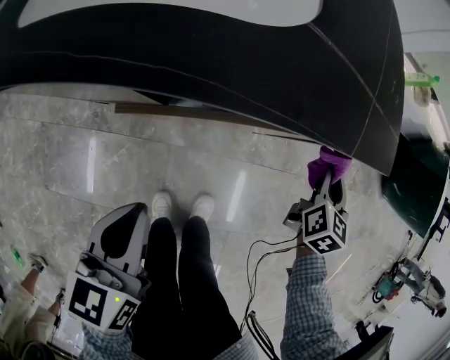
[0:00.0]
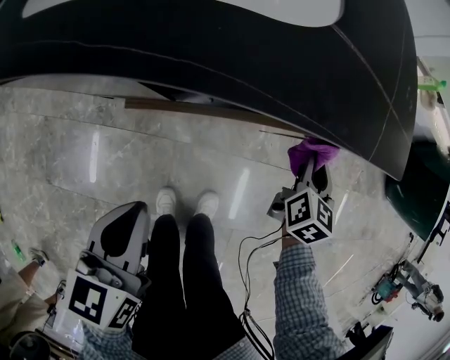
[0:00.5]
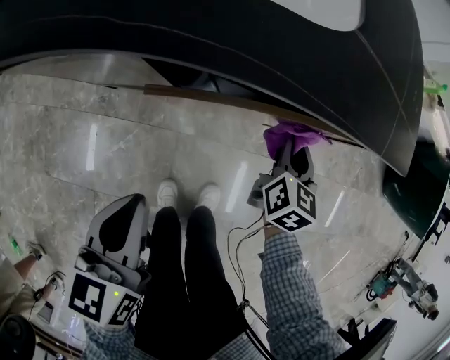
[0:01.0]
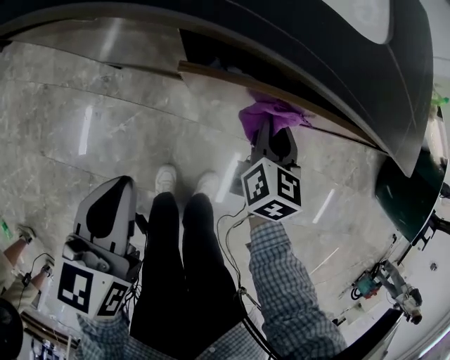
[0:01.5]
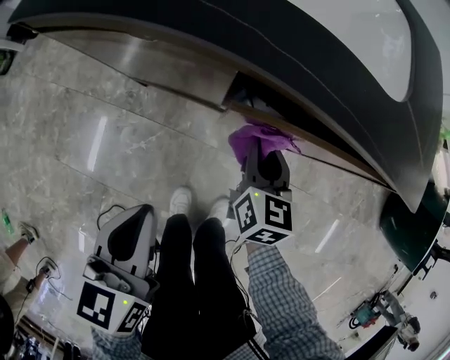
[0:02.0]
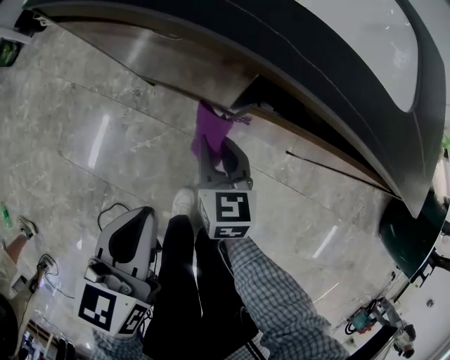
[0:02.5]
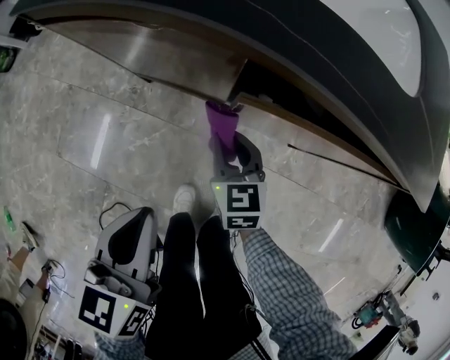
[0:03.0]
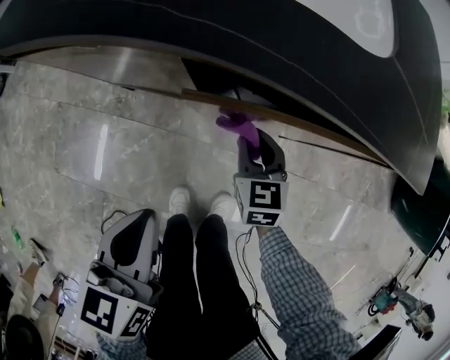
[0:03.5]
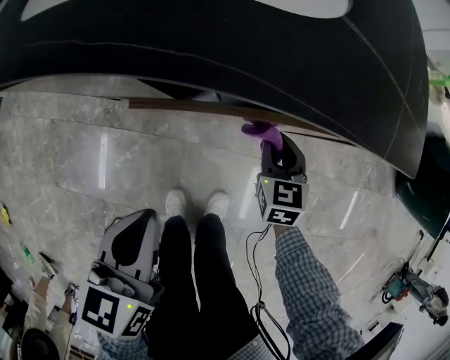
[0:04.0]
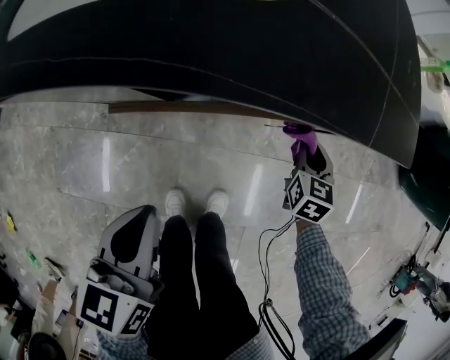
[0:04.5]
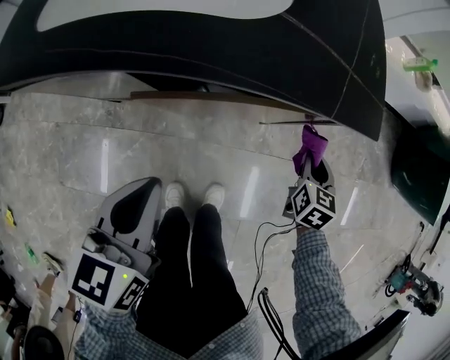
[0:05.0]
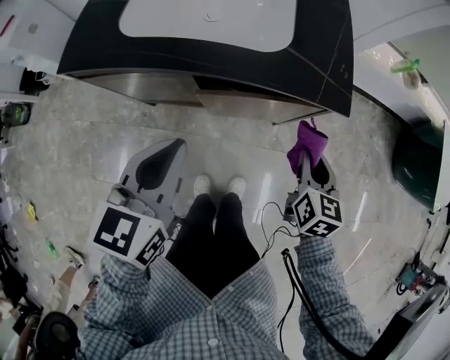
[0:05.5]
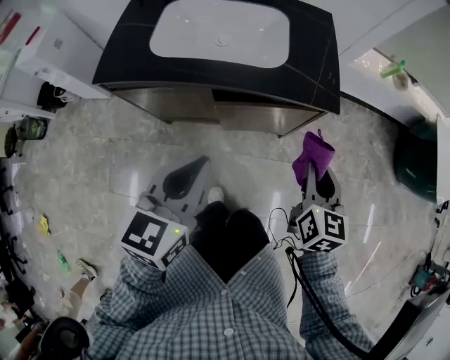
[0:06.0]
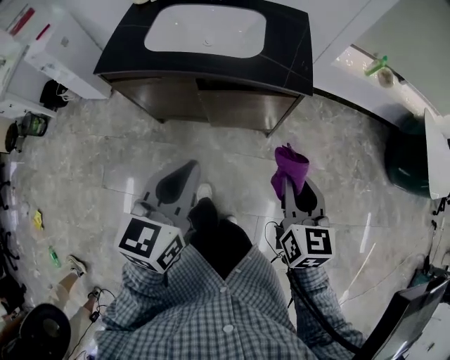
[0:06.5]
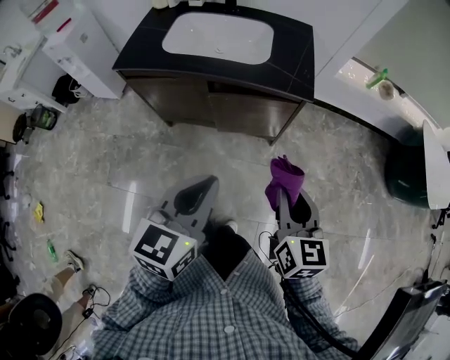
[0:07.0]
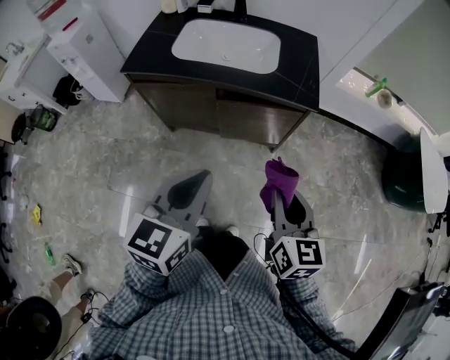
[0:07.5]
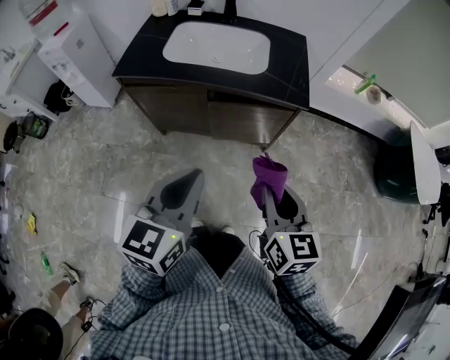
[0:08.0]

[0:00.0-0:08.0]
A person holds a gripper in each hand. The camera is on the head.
0:00.0 to 0:02.0: The left gripper shifts by approximately 15 cm. The right gripper shifts by approximately 35 cm, and rotates about 30 degrees.
0:02.0 to 0:04.0: The two grippers go about 15 cm to the right.
0:04.0 to 0:06.0: The left gripper heads upward, covering about 30 cm, and rotates about 20 degrees. Meanwhile the right gripper travels upward and backward by some 40 cm, and turns by some 20 degrees.
0:06.0 to 0:08.0: Both grippers move backward and upward, roughly 20 cm.

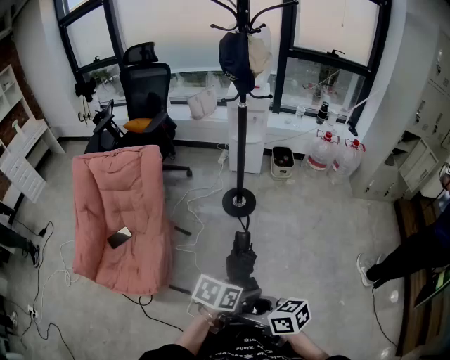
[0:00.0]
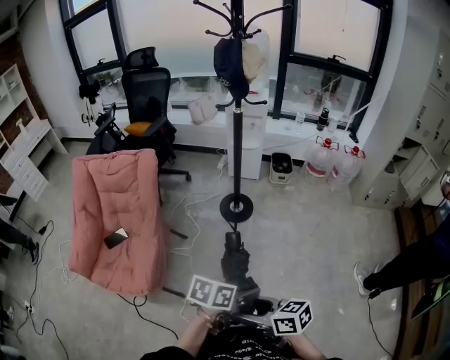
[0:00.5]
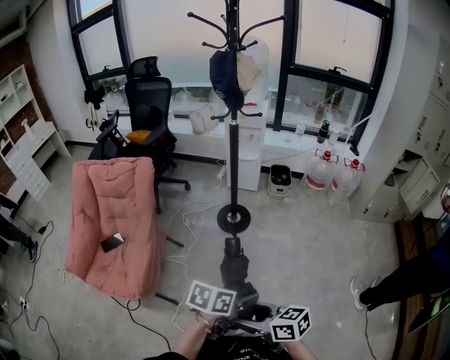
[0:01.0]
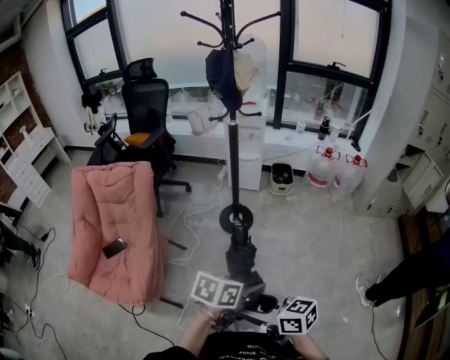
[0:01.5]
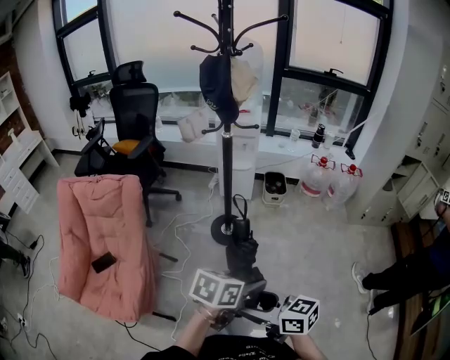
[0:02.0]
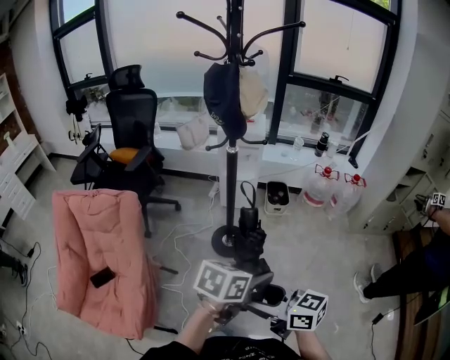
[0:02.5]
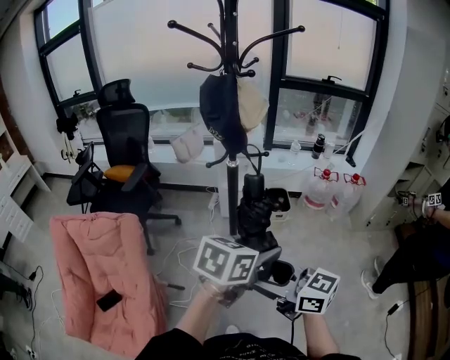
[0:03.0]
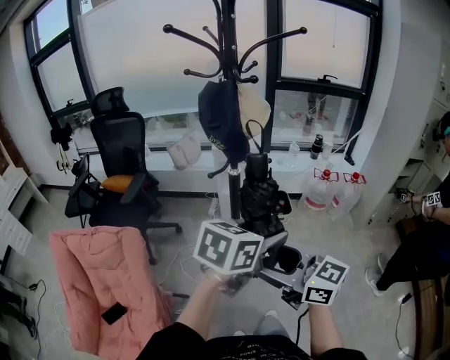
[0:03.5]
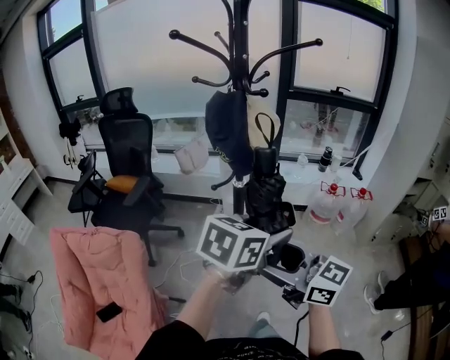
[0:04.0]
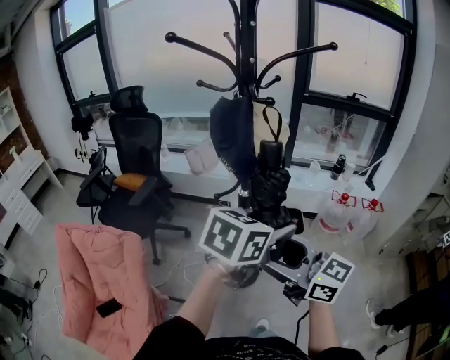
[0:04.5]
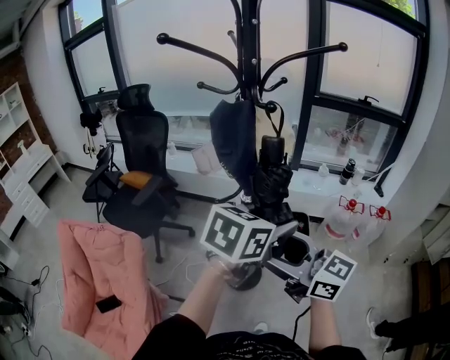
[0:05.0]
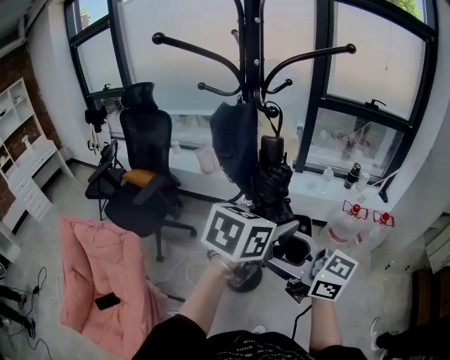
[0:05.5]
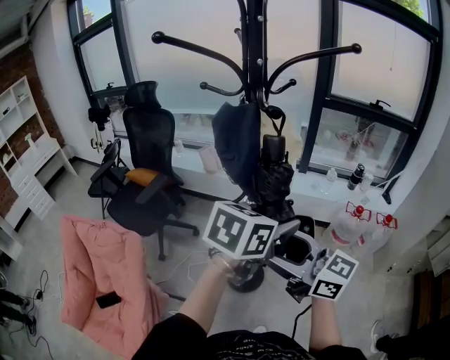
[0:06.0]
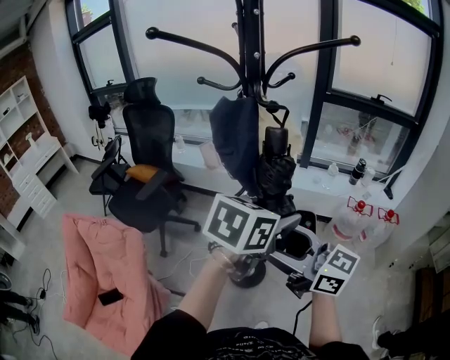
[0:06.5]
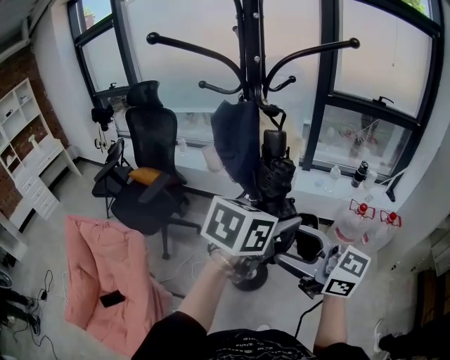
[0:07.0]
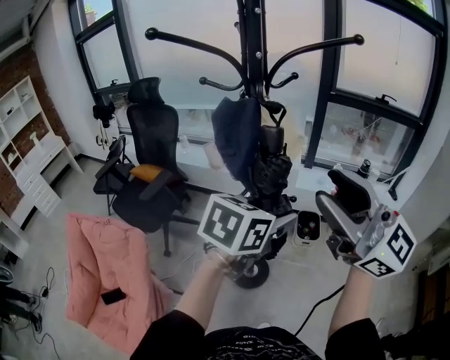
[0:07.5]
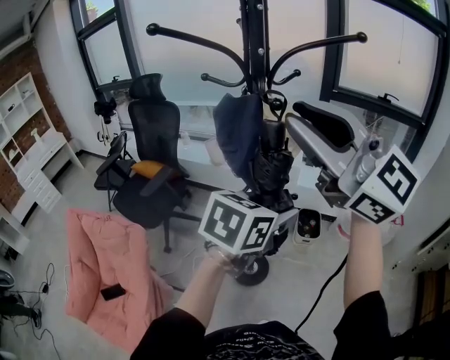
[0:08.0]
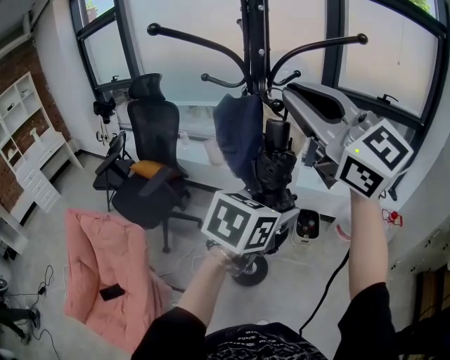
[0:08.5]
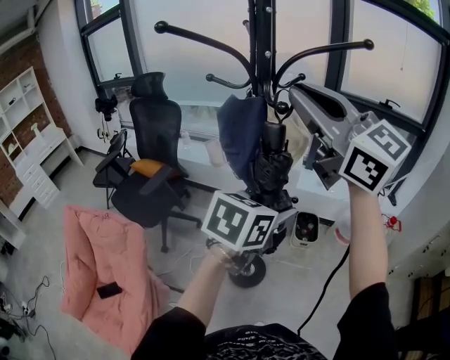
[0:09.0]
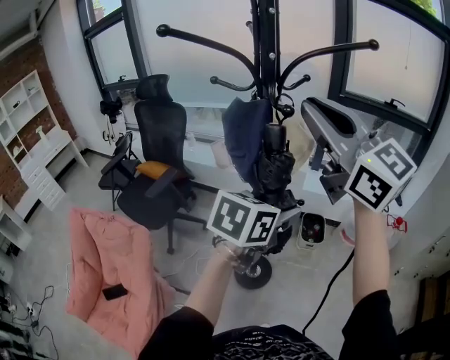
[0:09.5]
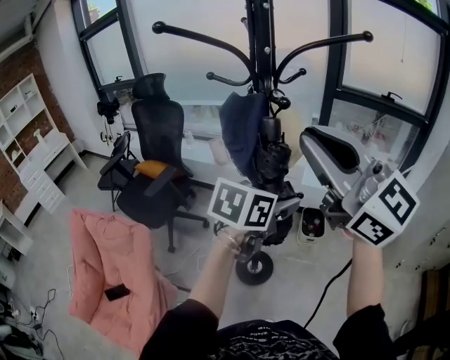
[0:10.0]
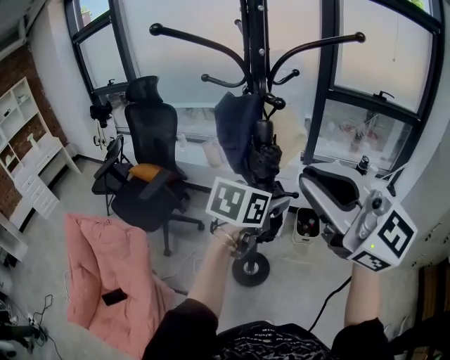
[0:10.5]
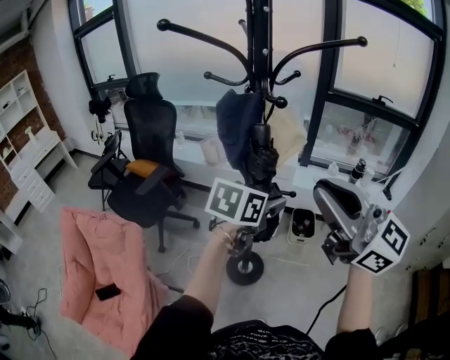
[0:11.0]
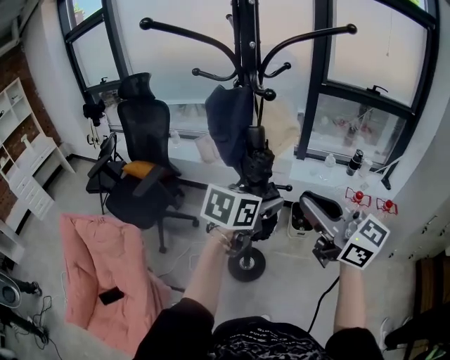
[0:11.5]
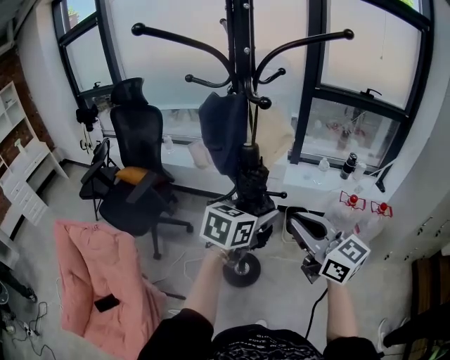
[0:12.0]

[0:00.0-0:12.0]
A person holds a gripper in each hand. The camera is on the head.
0:00.0 to 0:02.0: The right gripper changes place by approximately 20 cm, while the left gripper changes place by about 20 cm.
0:02.0 to 0:04.0: Both grippers travel together forward and upward, some 35 cm. The left gripper swivels about 20 degrees, while the right gripper swivels approximately 30 degrees.
0:04.0 to 0:06.0: Both grippers move forward, approximately 10 cm.
0:06.0 to 0:08.0: The right gripper heads upward, covering some 25 cm, changes its angle by approximately 40 degrees, and closes.
0:10.0 to 0:12.0: The left gripper shifts some 5 cm downward; the right gripper moves downward, roughly 20 cm, and swivels roughly 30 degrees.

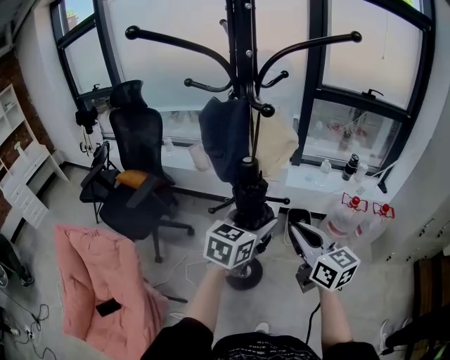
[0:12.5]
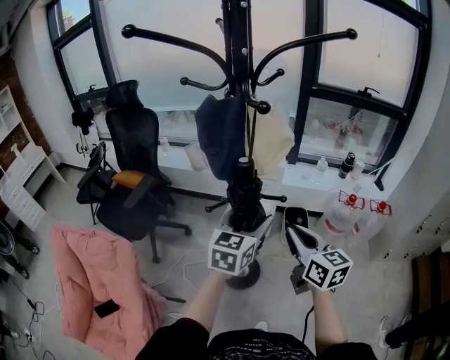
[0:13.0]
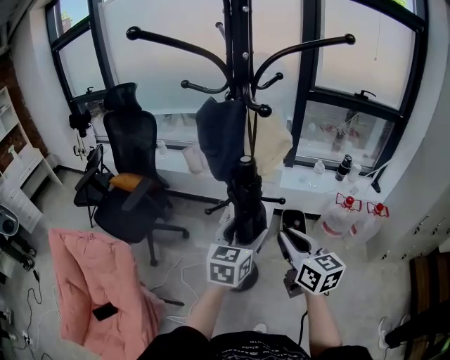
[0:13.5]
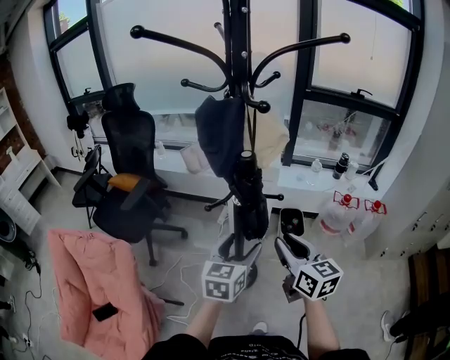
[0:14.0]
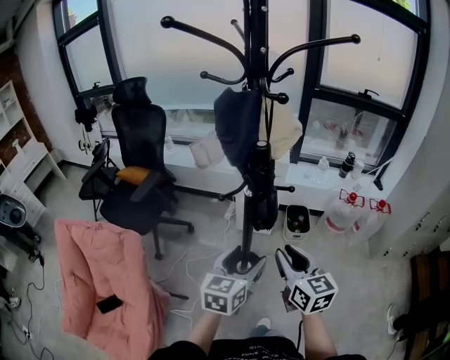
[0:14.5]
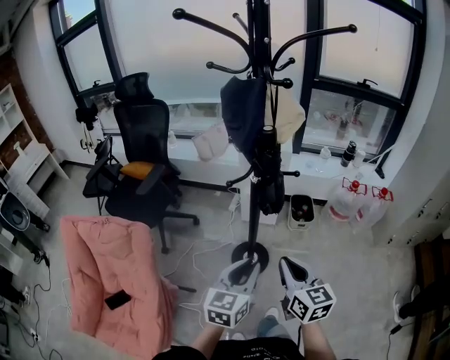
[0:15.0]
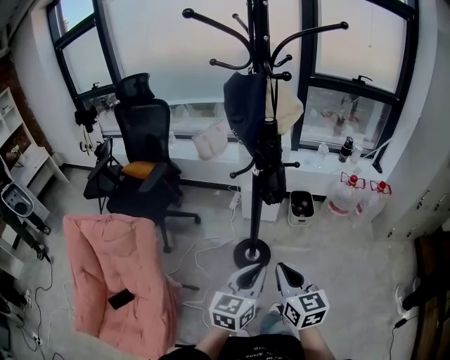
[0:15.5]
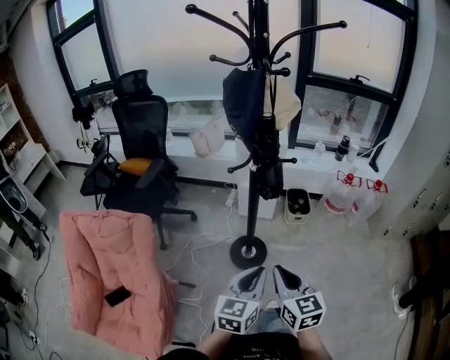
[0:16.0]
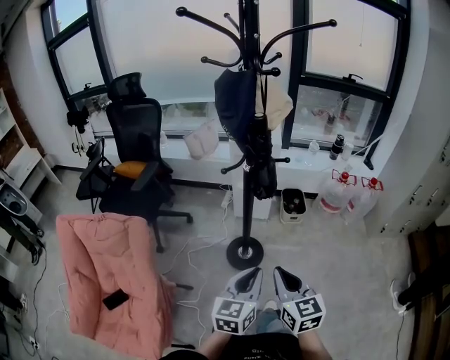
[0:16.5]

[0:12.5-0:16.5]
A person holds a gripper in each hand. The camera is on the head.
0:12.5 to 0:14.5: The right gripper travels backward and downward by roughly 10 cm; the left gripper moves backward, downward and to the left, approximately 15 cm.
0:14.5 to 0:16.5: Both grippers move backward, some 15 cm. The left gripper closes up.

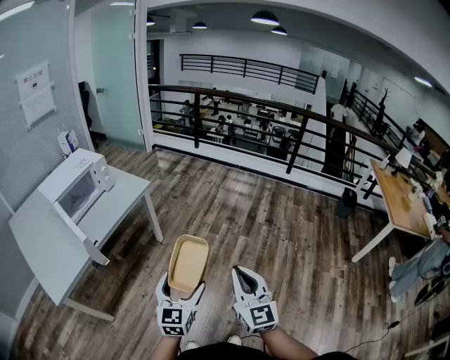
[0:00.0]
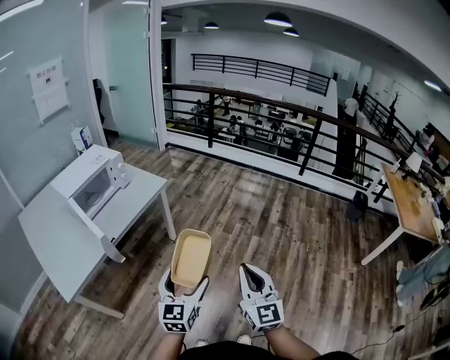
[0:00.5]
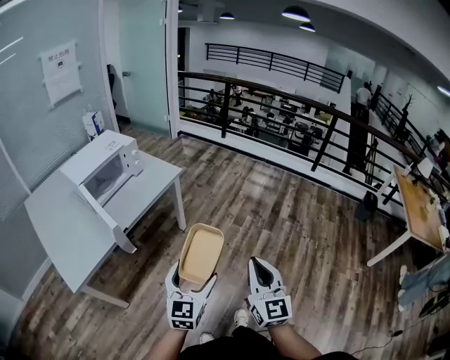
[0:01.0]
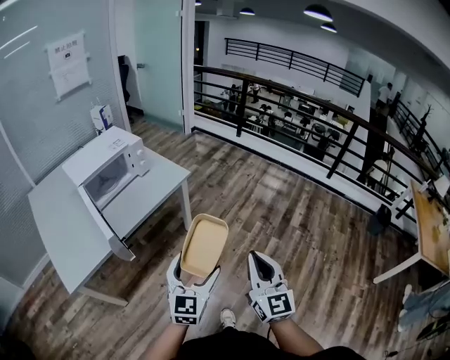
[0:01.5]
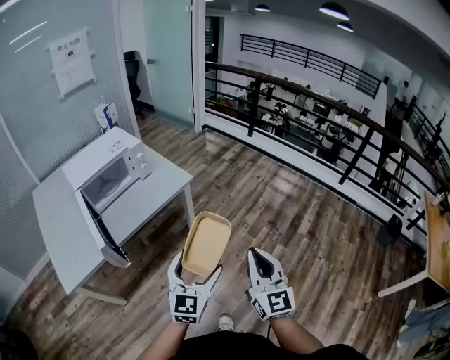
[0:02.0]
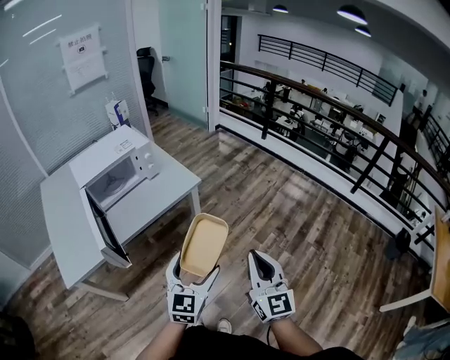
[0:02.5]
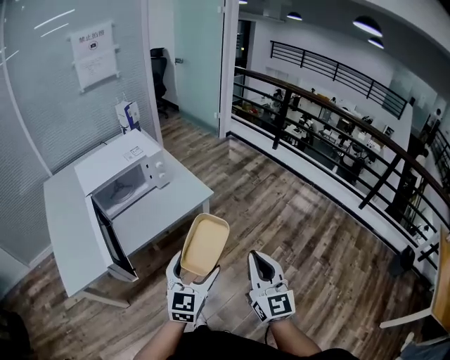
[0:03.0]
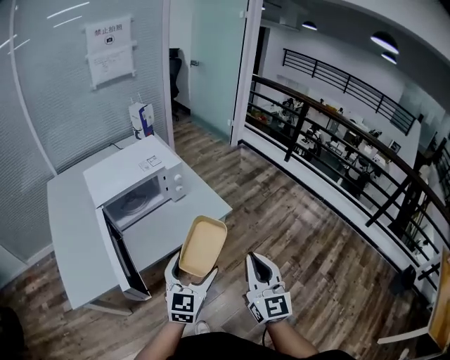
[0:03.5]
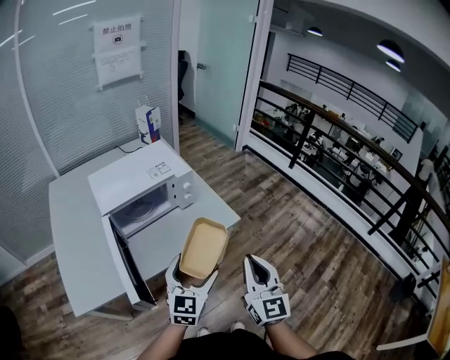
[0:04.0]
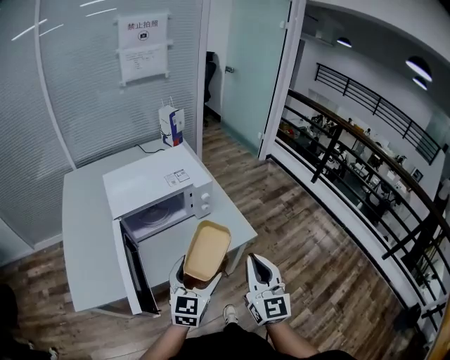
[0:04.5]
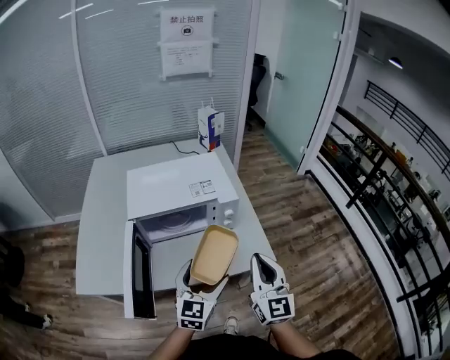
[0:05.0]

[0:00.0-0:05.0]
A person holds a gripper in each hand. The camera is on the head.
0:00.0 to 0:02.5: The two grippers go some 25 cm forward.
0:02.5 to 0:05.0: The left gripper moves about 40 cm, and changes its angle by about 30 degrees, while the right gripper shifts by about 50 cm, and turns by roughly 30 degrees.
